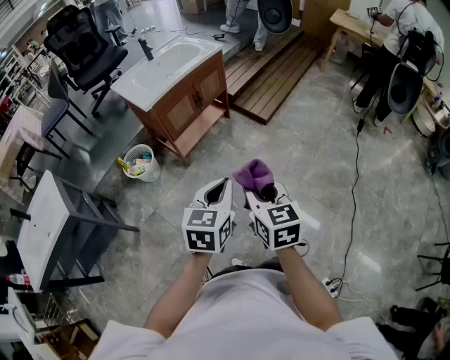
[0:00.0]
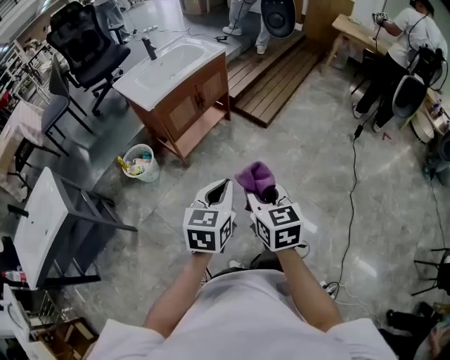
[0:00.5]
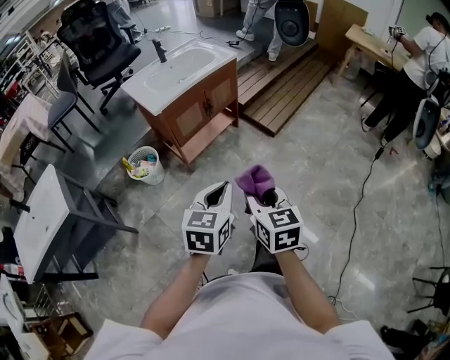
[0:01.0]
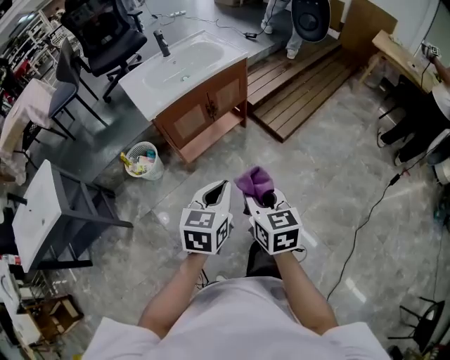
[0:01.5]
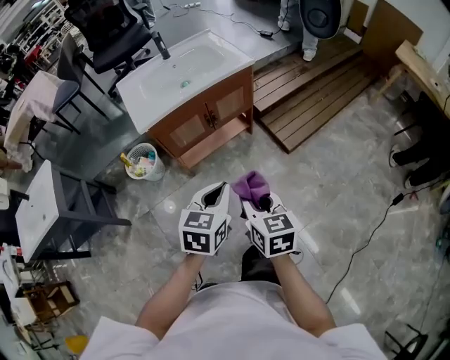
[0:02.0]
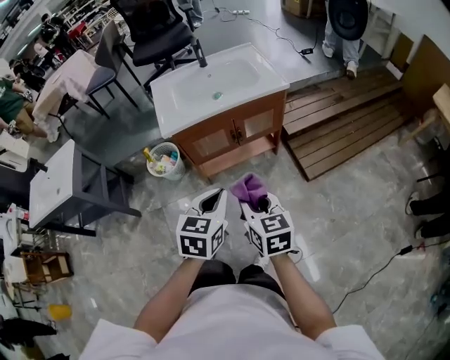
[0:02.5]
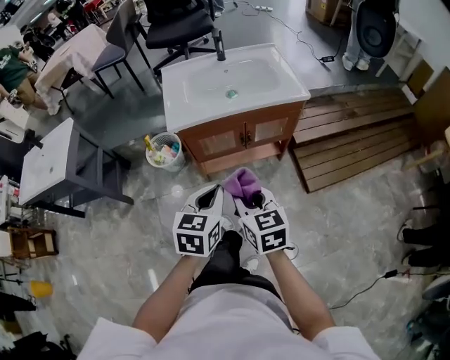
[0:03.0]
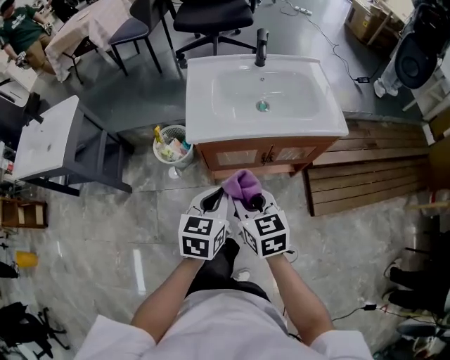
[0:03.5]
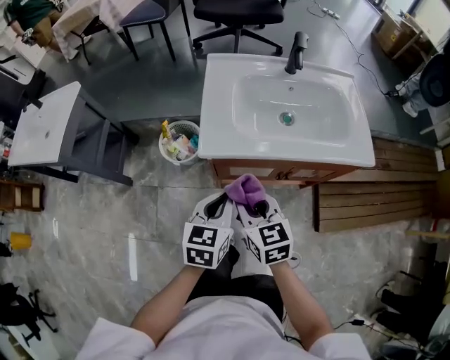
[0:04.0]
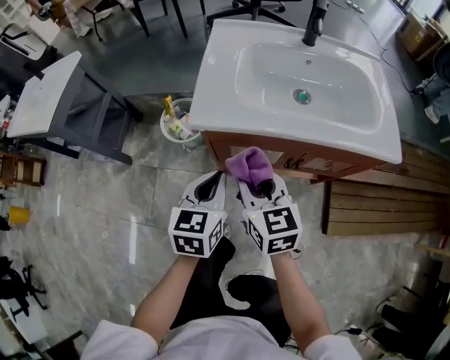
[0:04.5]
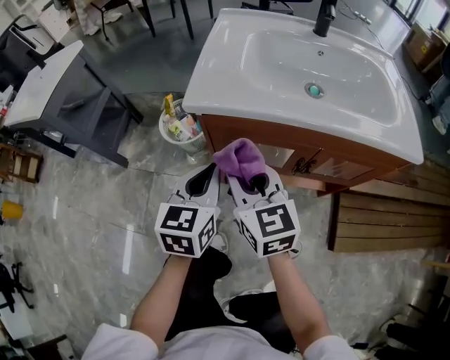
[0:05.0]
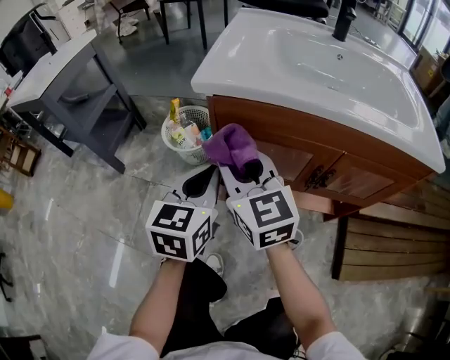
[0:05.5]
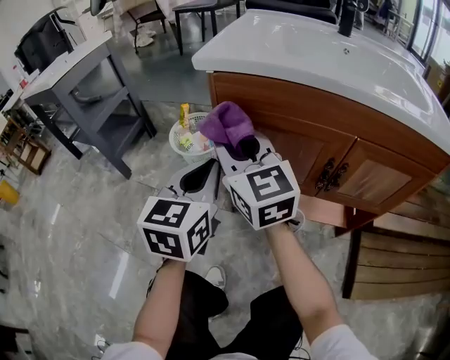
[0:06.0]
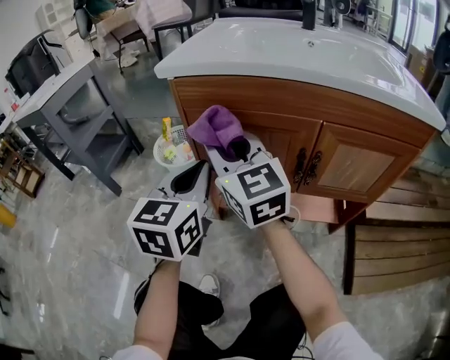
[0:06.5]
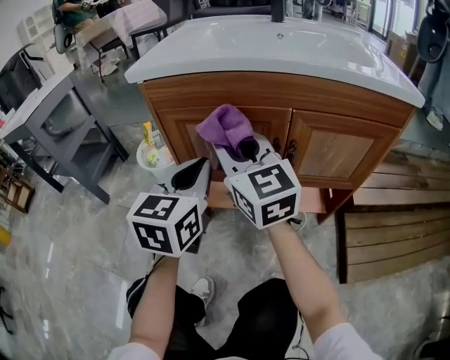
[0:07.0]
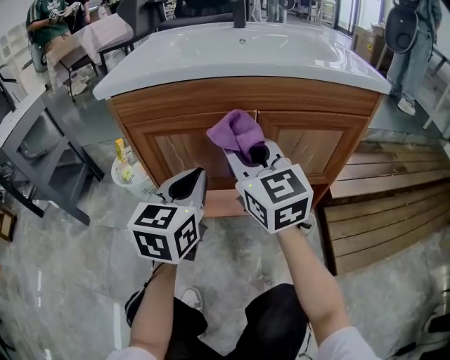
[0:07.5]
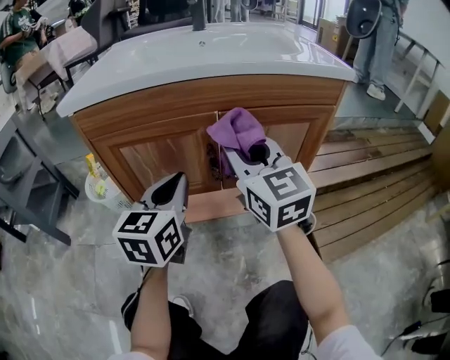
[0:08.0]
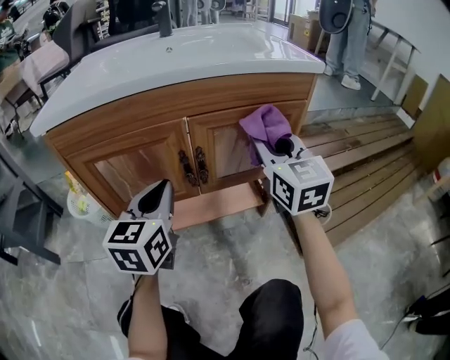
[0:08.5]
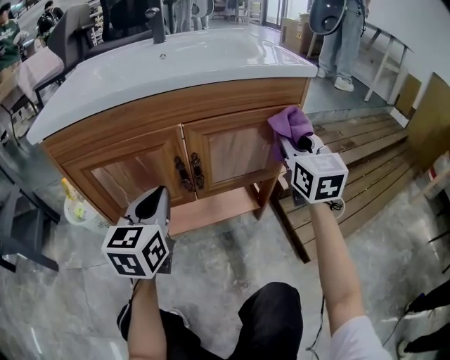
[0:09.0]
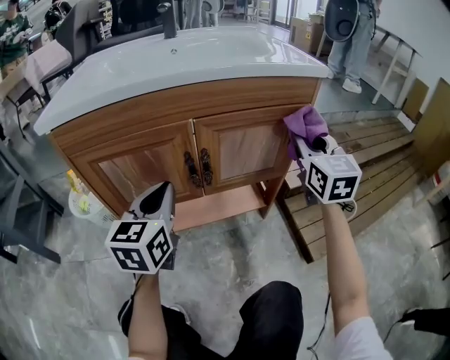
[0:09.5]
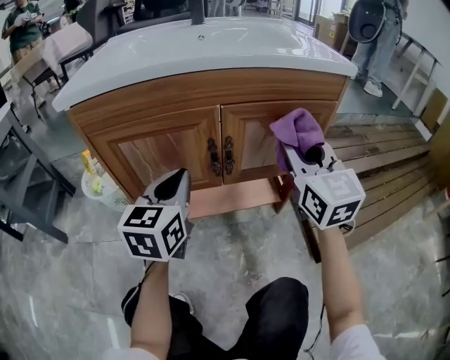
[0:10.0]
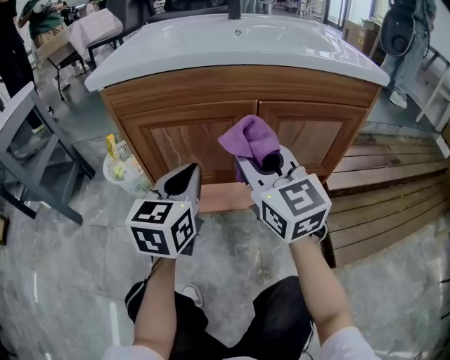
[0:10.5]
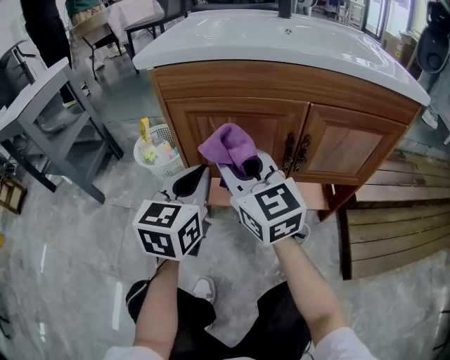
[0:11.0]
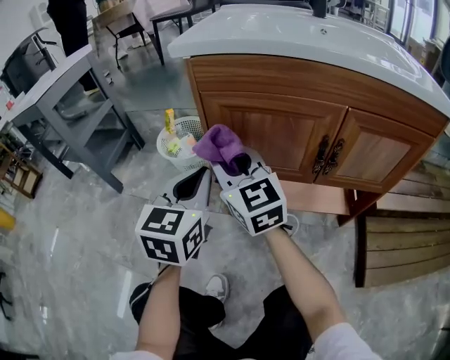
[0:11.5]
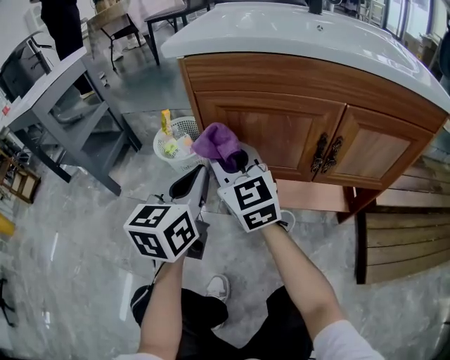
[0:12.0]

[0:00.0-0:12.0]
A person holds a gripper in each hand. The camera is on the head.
0:00.0 to 0:02.0: Both grippers travel together forward, some 30 cm.
0:02.0 to 0:04.0: The left gripper ends up approximately 35 cm from where it was, and changes its angle by approximately 30 degrees. The right gripper changes place by about 35 cm, and turns by roughly 40 degrees.
0:04.0 to 0:06.0: The right gripper is displaced downward, forward and to the left by about 20 cm, and turns by approximately 40 degrees, while the left gripper is displaced downward by roughly 20 cm, and rotates approximately 30 degrees.
0:06.0 to 0:08.0: The left gripper shifts about 20 cm to the right, and rotates roughly 20 degrees. The right gripper shifts about 30 cm to the right, and changes its angle by some 30 degrees.
0:08.0 to 0:10.0: The right gripper shifts some 10 cm to the right.
0:10.0 to 0:12.0: The left gripper moves roughly 20 cm, while the right gripper shifts by about 40 cm, and rotates about 30 degrees.

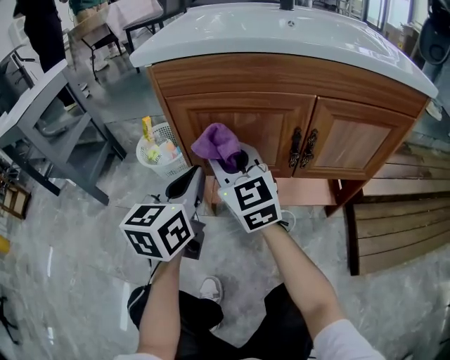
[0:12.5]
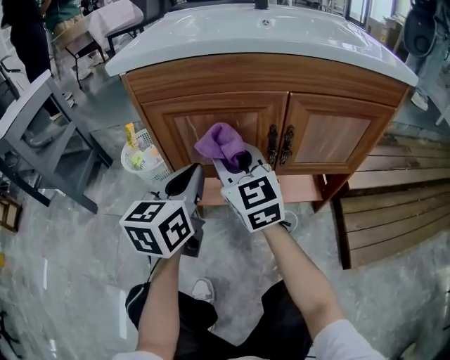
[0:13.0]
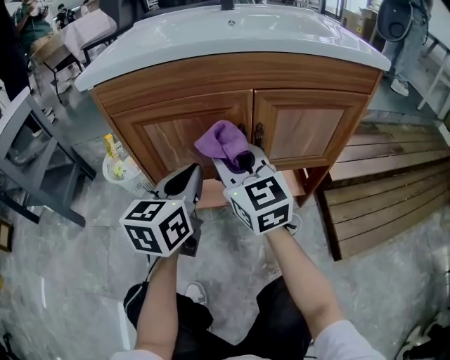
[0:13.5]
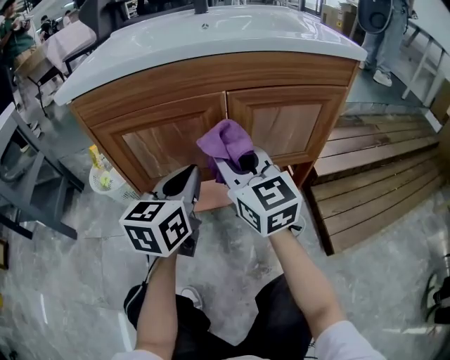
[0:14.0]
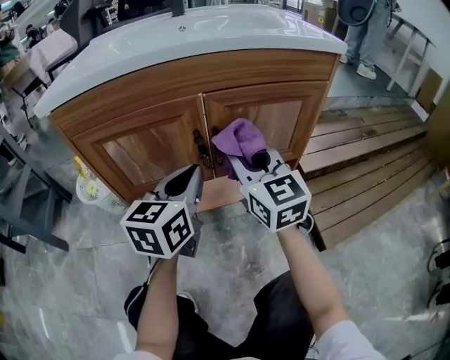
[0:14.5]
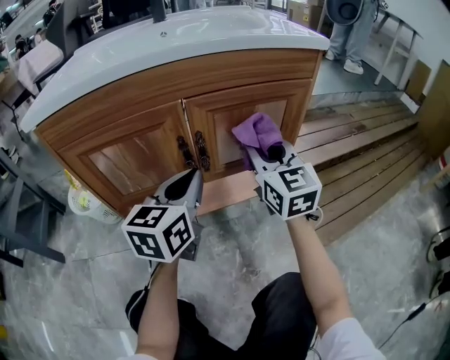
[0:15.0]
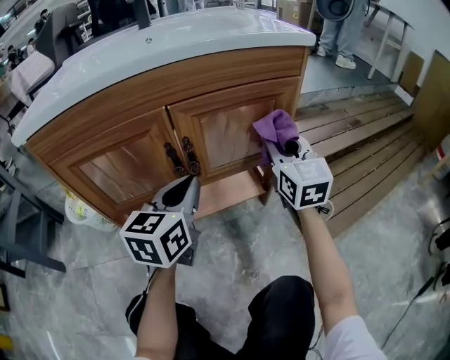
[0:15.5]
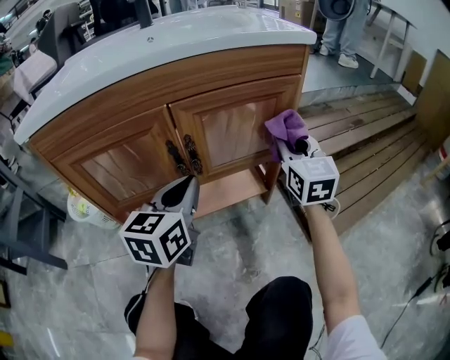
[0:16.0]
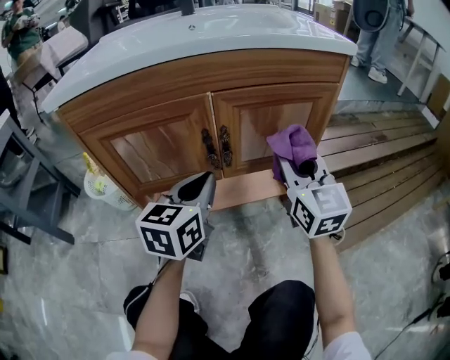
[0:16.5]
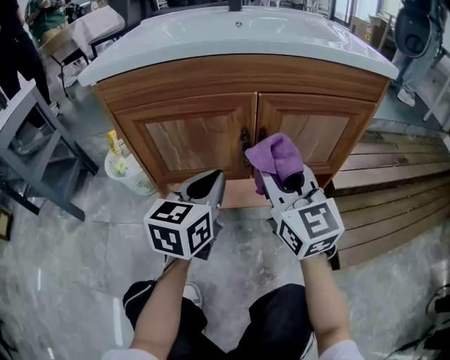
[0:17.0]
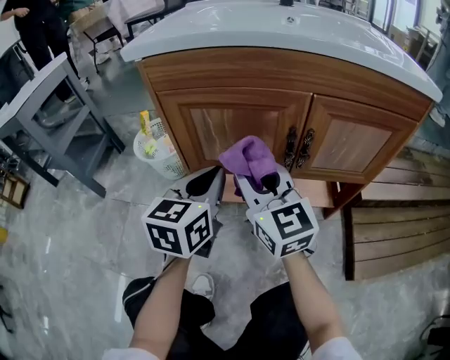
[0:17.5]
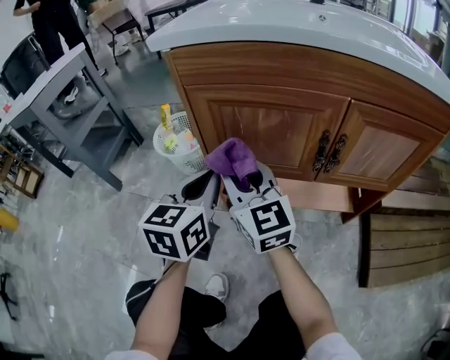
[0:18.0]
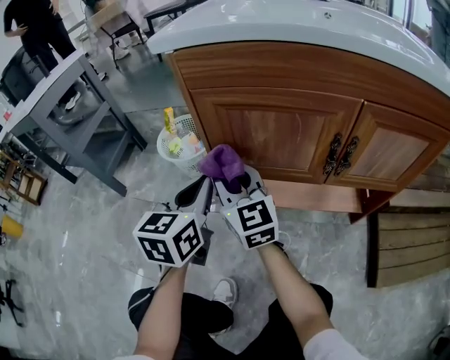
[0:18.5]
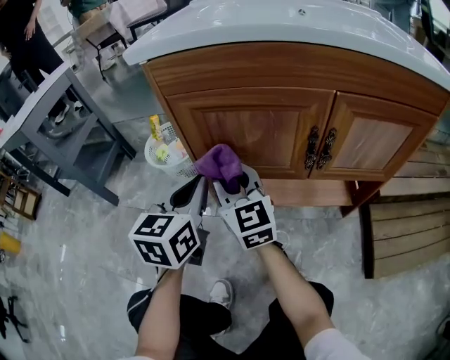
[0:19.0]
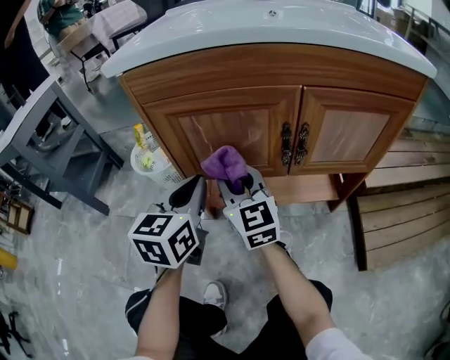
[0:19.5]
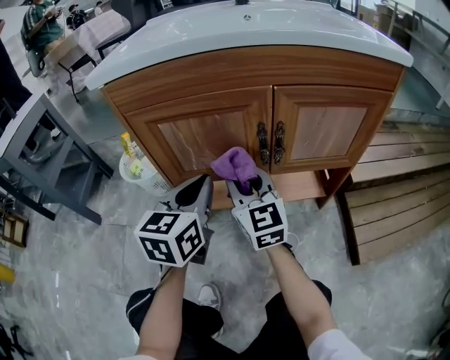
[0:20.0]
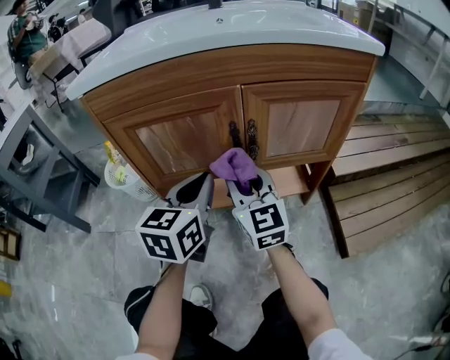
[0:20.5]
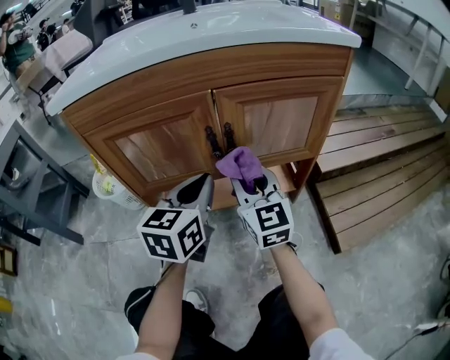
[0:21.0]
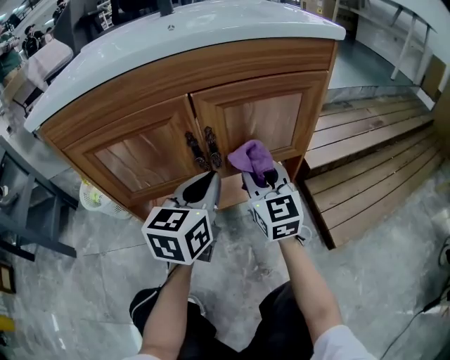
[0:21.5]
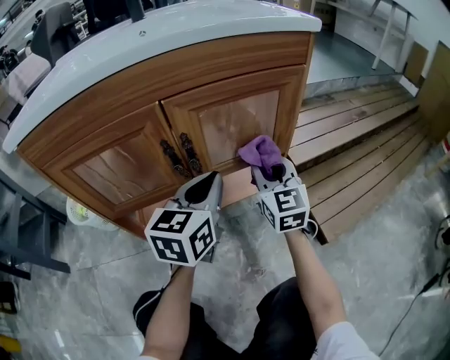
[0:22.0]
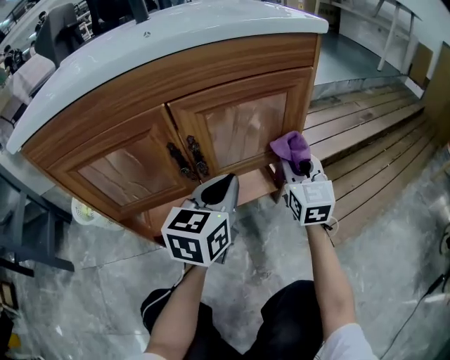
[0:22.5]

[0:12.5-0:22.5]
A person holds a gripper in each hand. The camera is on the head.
0:12.5 to 0:14.5: Both grippers move to the right, roughly 20 cm. The right gripper turns by roughly 20 degrees; the left gripper changes its angle by approximately 20 degrees.
0:14.5 to 0:16.5: The right gripper goes about 10 cm to the right.
0:16.5 to 0:18.5: The left gripper changes place by roughly 25 cm, and swivels approximately 30 degrees. Meanwhile the right gripper shifts by about 40 cm, and rotates about 30 degrees.
0:18.5 to 0:20.5: Both grippers move to the right, roughly 20 cm. The right gripper rotates about 20 degrees.
0:20.5 to 0:22.5: The right gripper heads to the right, covering approximately 25 cm, and changes its angle by some 30 degrees; the left gripper heads to the right, covering about 15 cm.

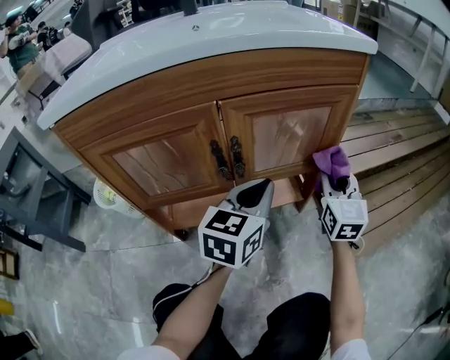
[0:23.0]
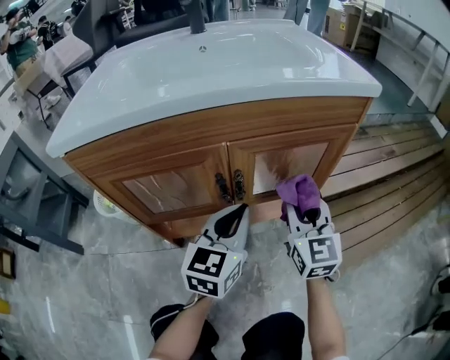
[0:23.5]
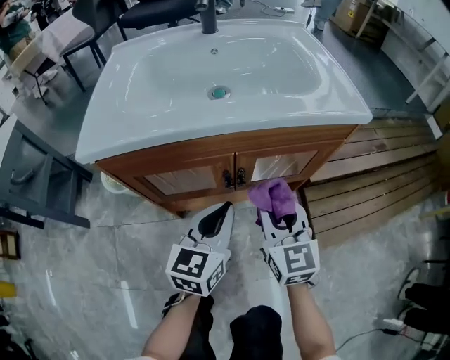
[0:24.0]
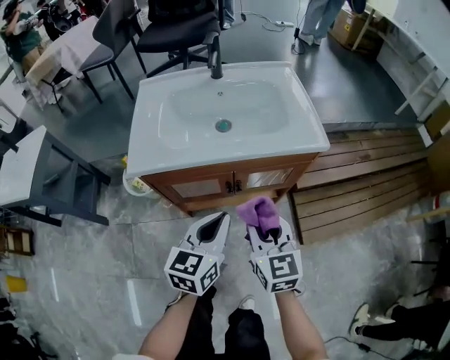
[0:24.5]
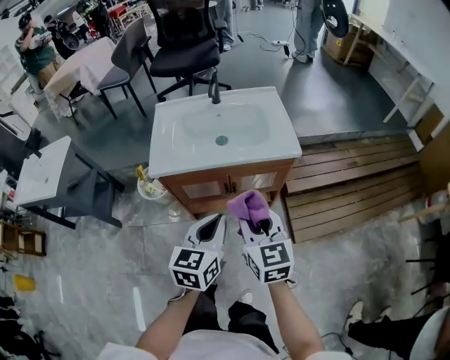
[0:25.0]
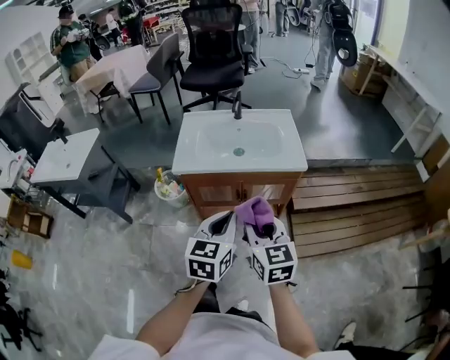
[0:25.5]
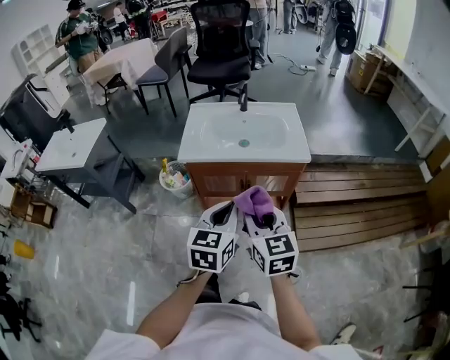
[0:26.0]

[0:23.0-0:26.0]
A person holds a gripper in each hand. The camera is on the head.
0:23.0 to 0:24.5: The right gripper moves upward, backward and to the left, about 40 cm, and turns by roughly 30 degrees; the left gripper heads upward and backward, covering roughly 30 cm.
0:24.5 to 0:26.0: The two grippers go about 25 cm upward and backward.

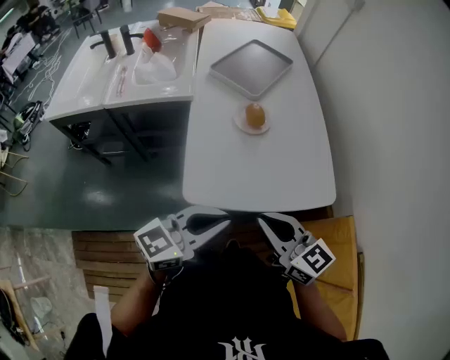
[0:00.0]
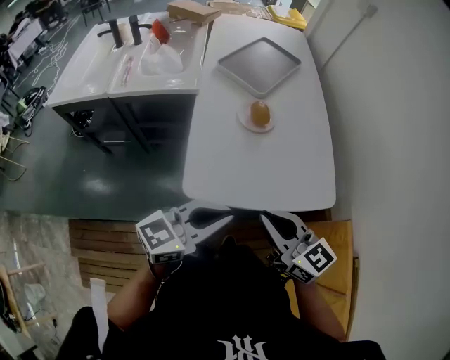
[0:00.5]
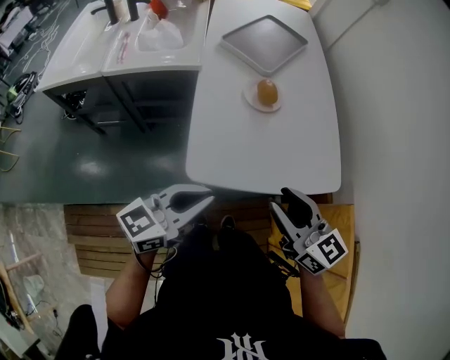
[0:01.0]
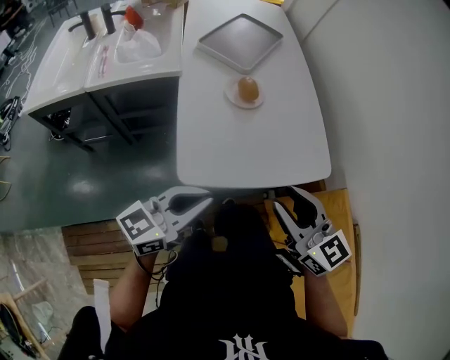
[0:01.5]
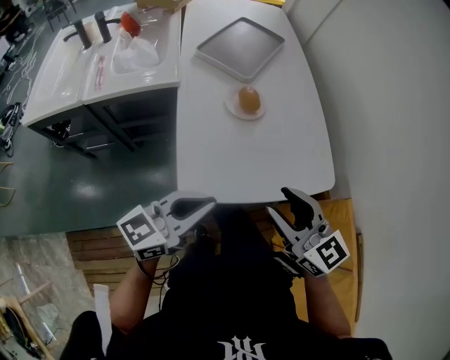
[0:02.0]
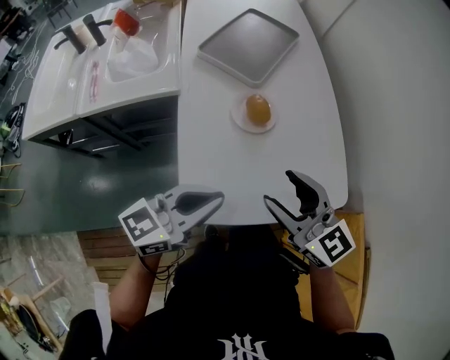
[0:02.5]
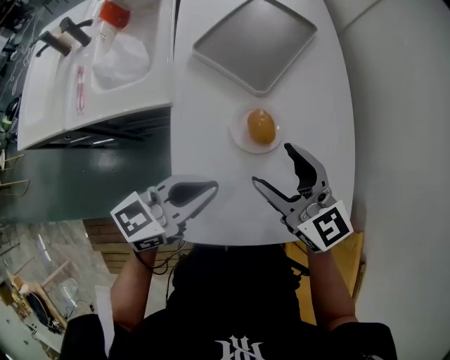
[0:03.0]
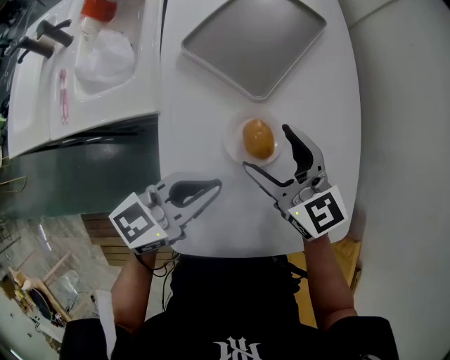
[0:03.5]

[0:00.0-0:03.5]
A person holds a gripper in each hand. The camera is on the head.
0:00.0 to 0:02.0: The left gripper goes approximately 5 cm to the left. The right gripper opens.
0:02.0 to 0:03.5: Both grippers move forward, about 30 cm. The right gripper opens.
